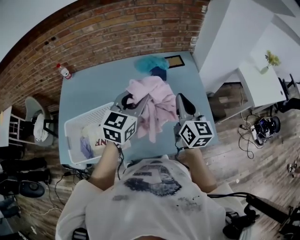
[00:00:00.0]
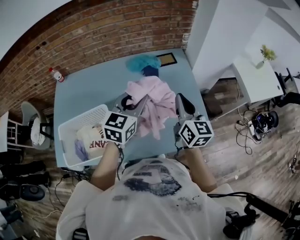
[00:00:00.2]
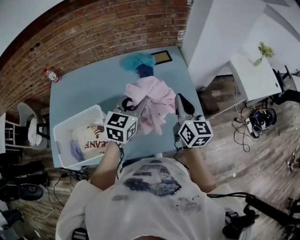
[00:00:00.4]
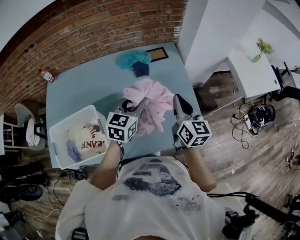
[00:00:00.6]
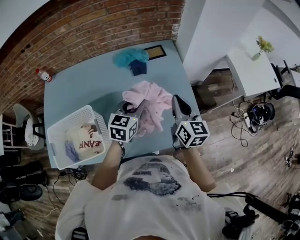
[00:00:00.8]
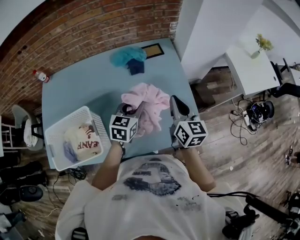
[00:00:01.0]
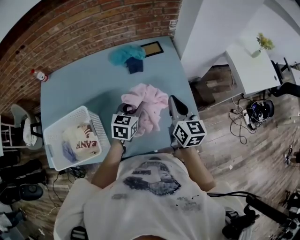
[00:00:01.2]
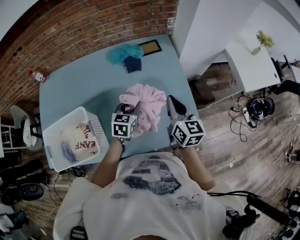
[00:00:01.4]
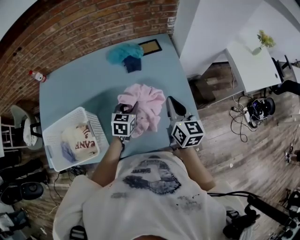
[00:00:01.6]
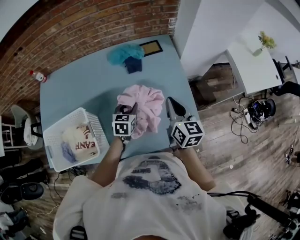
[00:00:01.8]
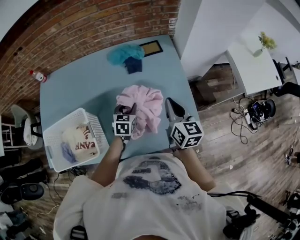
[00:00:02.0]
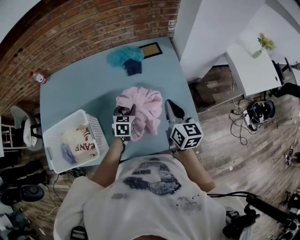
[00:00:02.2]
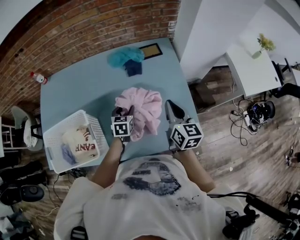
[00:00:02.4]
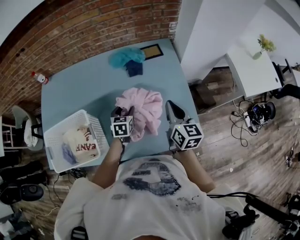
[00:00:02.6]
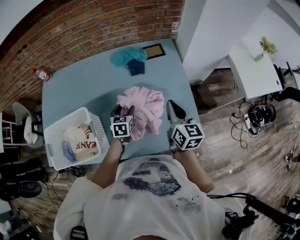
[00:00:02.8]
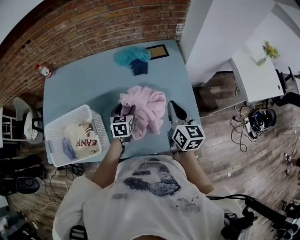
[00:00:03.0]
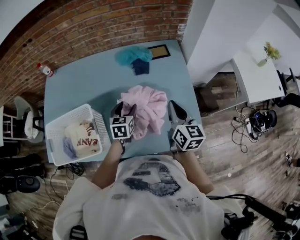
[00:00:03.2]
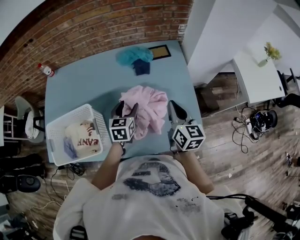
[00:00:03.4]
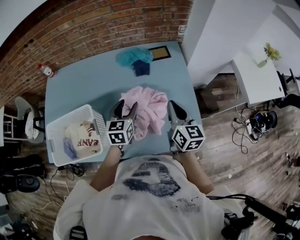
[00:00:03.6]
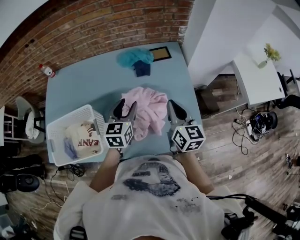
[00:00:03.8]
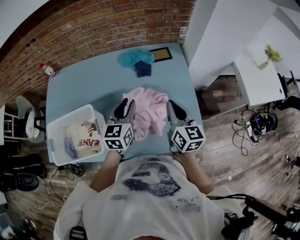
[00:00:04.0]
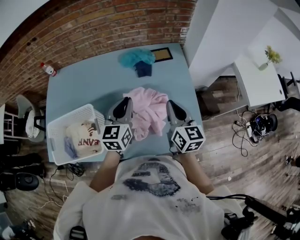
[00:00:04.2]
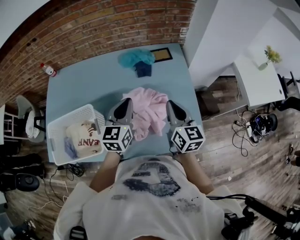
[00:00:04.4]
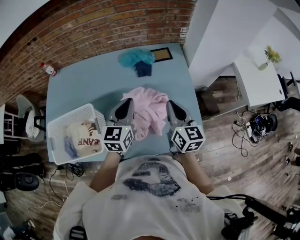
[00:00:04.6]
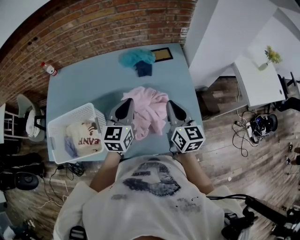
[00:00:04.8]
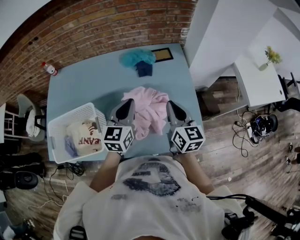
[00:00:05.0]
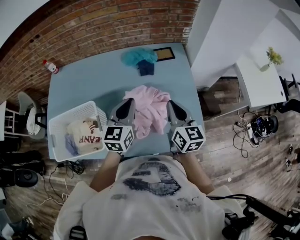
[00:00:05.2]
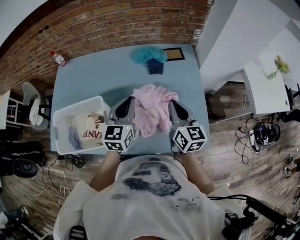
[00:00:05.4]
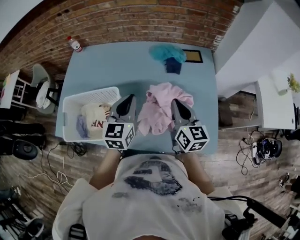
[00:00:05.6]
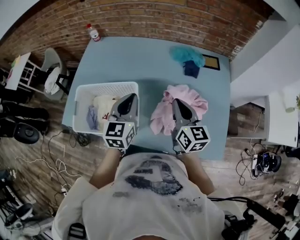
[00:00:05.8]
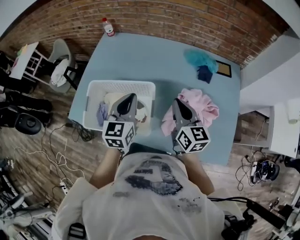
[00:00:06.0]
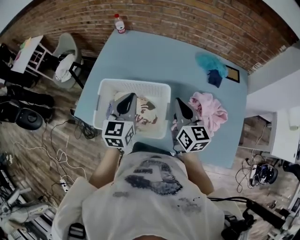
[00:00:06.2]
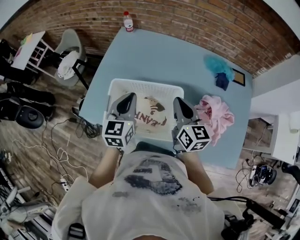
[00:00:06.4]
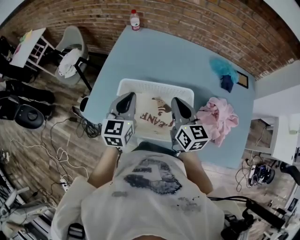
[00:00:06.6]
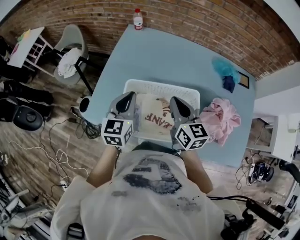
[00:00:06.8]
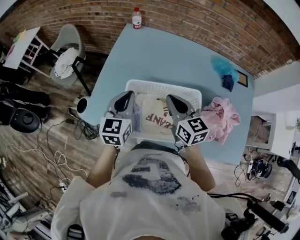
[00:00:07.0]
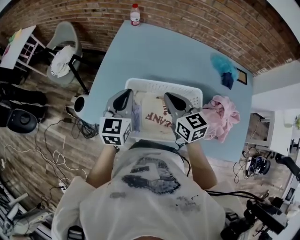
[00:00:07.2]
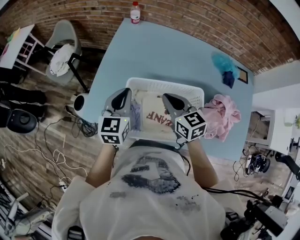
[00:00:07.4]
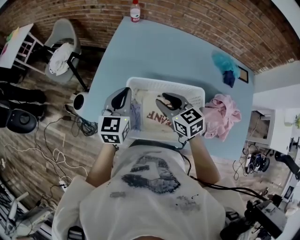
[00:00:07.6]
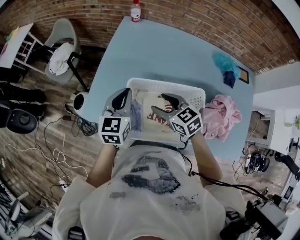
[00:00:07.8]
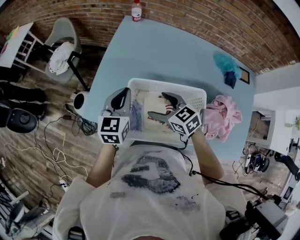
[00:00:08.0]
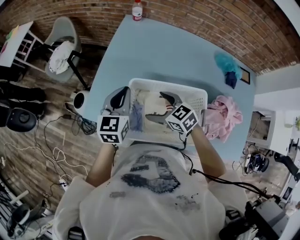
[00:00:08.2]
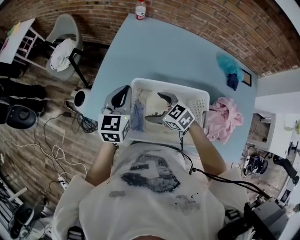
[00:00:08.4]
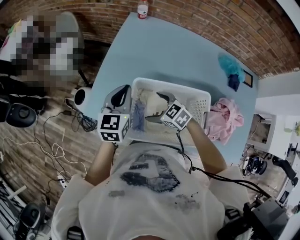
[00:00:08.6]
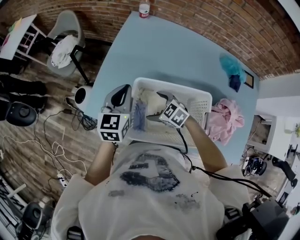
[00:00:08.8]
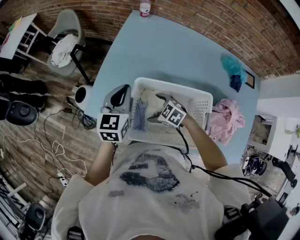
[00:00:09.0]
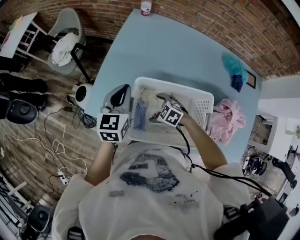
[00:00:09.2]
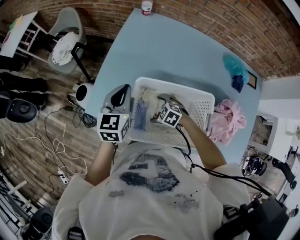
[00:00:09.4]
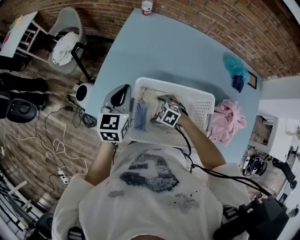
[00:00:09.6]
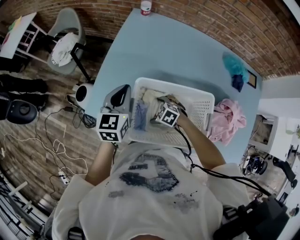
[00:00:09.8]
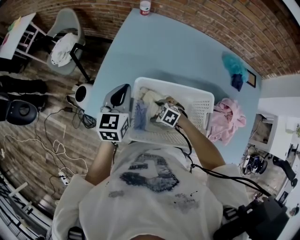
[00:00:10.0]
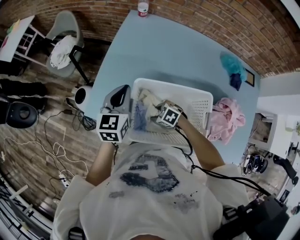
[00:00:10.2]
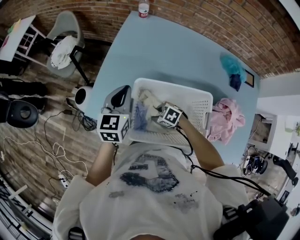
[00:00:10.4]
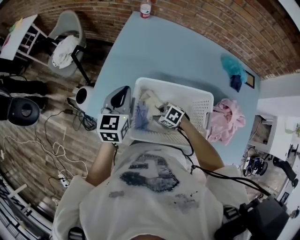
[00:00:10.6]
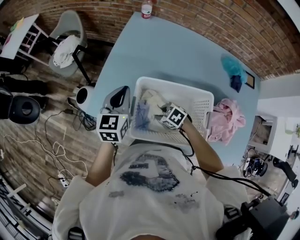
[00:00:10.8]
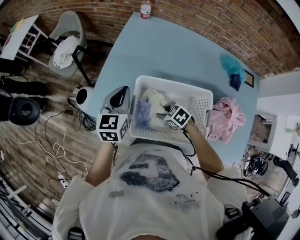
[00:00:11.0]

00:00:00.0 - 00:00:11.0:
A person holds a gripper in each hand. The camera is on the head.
00:00:00.0 - 00:00:01.6: The left gripper moves downward, approximately 25 cm, and swivels about 30 degrees, while the right gripper travels to the right and downward by about 15 cm.
00:00:01.6 - 00:00:03.2: The left gripper goes some 5 cm to the left.
00:00:03.2 - 00:00:04.8: The left gripper shifts approximately 15 cm upward, changes its angle by roughly 20 degrees, and closes up.
00:00:04.8 - 00:00:06.2: Both grippers travel together to the left, about 35 cm. The left gripper changes its angle by roughly 20 degrees. Meanwhile the right gripper changes its angle by roughly 20 degrees.
00:00:06.2 - 00:00:07.8: The right gripper goes roughly 25 cm to the left and downward, changes its angle by roughly 40 degrees, and opens up; the left gripper heads to the left and forward, covering some 20 cm.
00:00:07.8 - 00:00:09.4: The right gripper travels downward by some 20 cm, turns by about 40 degrees, and opens its fingers.
00:00:09.4 - 00:00:11.0: The right gripper closes.

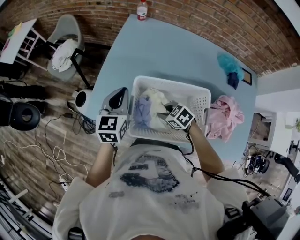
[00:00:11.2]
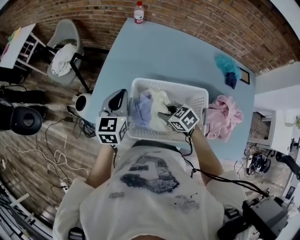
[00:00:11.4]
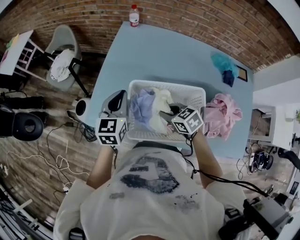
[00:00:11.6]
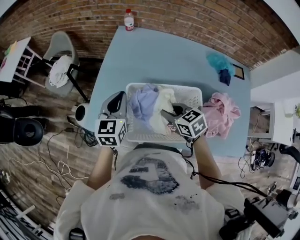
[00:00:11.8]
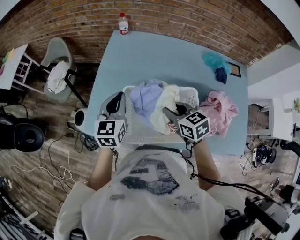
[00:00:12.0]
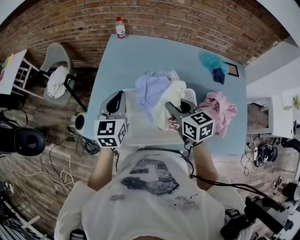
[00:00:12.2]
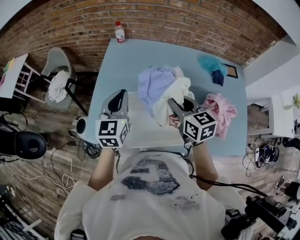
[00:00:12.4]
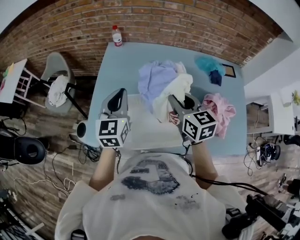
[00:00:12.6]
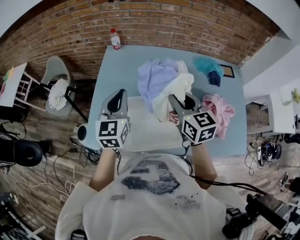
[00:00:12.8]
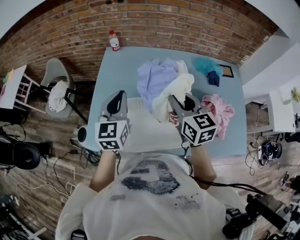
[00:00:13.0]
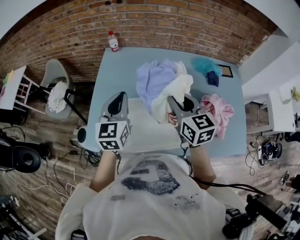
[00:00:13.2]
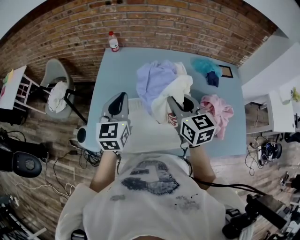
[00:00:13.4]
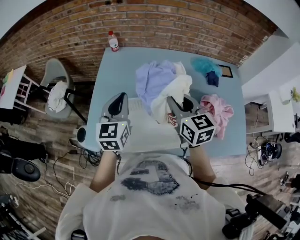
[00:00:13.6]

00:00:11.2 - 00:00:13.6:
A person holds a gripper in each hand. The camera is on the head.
00:00:11.2 - 00:00:12.4: The left gripper travels upward by some 10 cm. Meanwhile the right gripper travels upward by about 25 cm, and tilts its fingers some 30 degrees upward.
00:00:12.4 - 00:00:13.6: The right gripper changes place by approximately 5 cm.

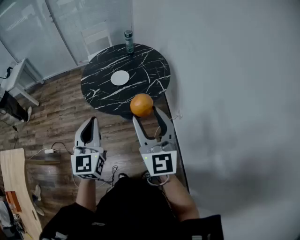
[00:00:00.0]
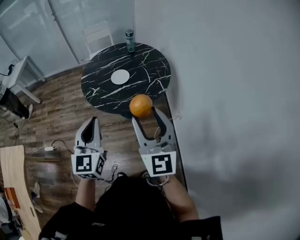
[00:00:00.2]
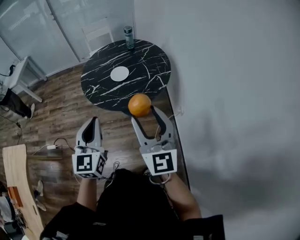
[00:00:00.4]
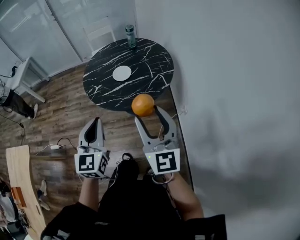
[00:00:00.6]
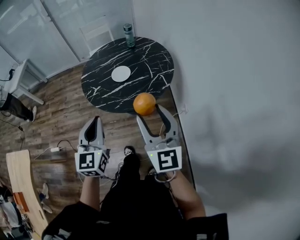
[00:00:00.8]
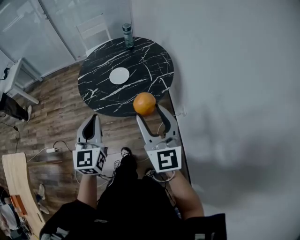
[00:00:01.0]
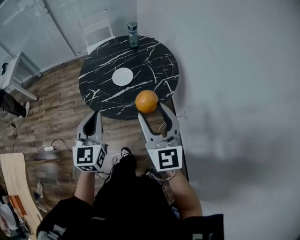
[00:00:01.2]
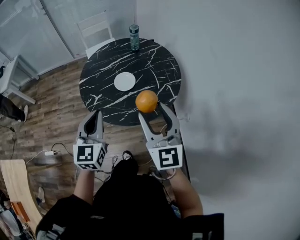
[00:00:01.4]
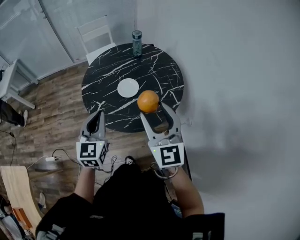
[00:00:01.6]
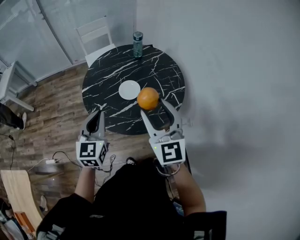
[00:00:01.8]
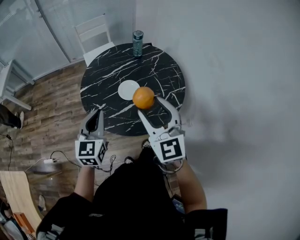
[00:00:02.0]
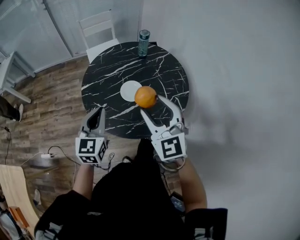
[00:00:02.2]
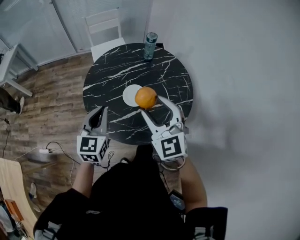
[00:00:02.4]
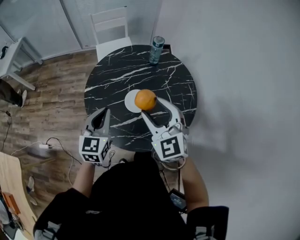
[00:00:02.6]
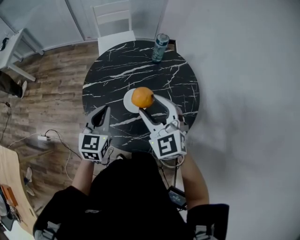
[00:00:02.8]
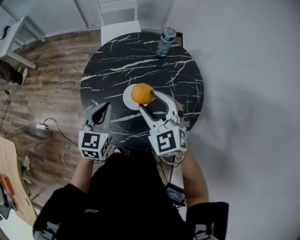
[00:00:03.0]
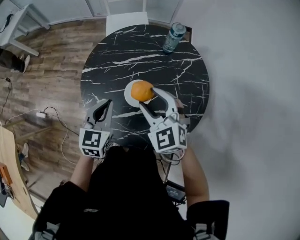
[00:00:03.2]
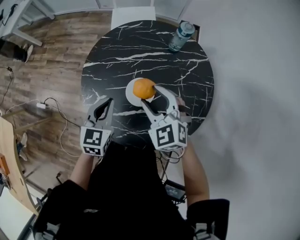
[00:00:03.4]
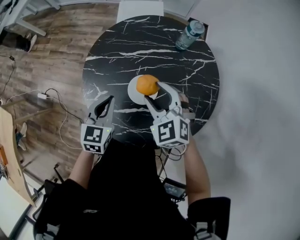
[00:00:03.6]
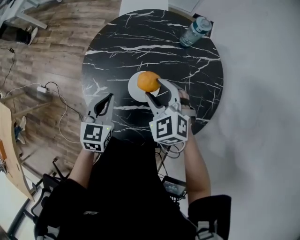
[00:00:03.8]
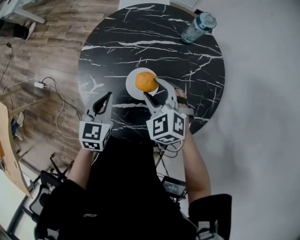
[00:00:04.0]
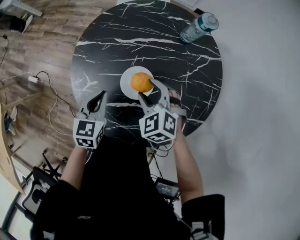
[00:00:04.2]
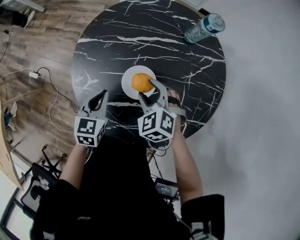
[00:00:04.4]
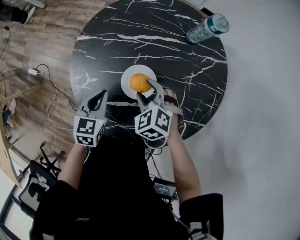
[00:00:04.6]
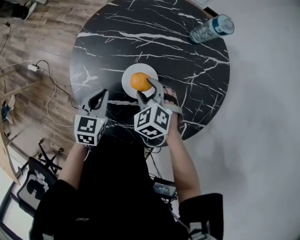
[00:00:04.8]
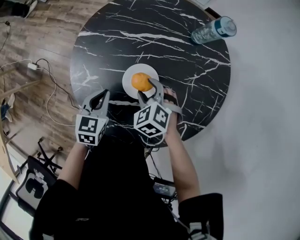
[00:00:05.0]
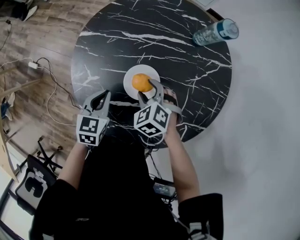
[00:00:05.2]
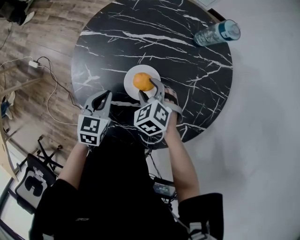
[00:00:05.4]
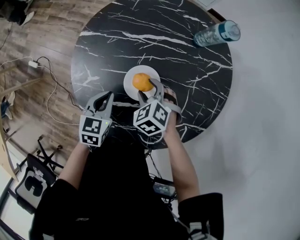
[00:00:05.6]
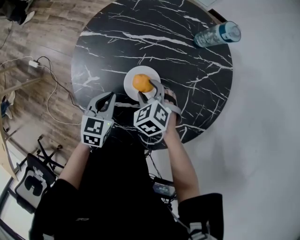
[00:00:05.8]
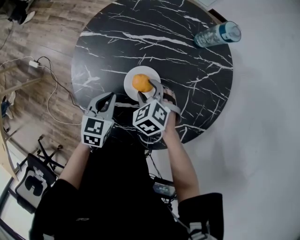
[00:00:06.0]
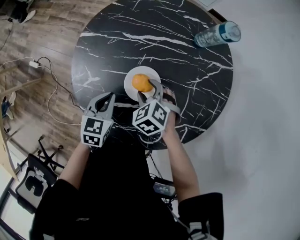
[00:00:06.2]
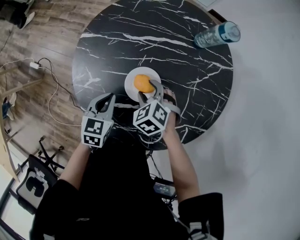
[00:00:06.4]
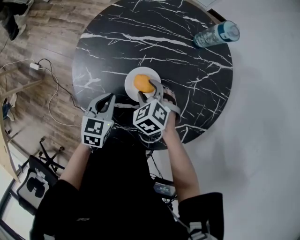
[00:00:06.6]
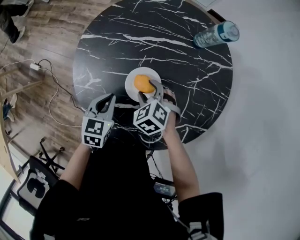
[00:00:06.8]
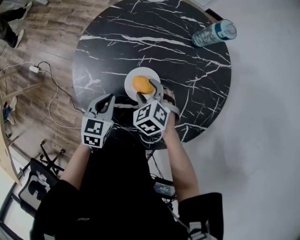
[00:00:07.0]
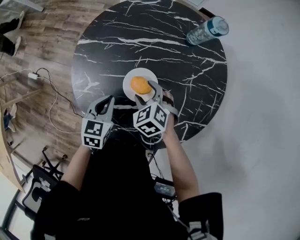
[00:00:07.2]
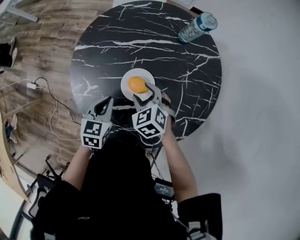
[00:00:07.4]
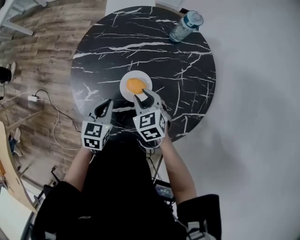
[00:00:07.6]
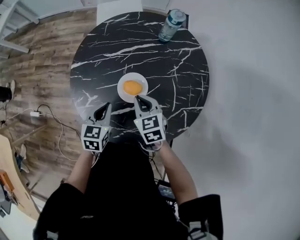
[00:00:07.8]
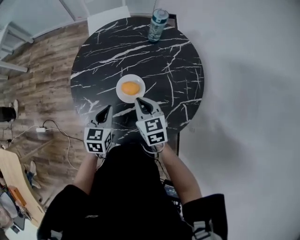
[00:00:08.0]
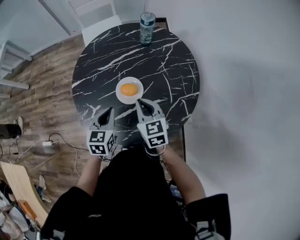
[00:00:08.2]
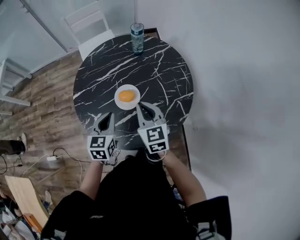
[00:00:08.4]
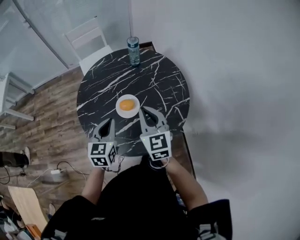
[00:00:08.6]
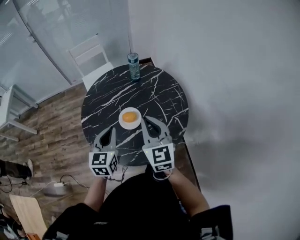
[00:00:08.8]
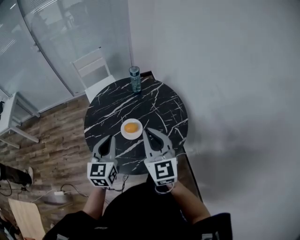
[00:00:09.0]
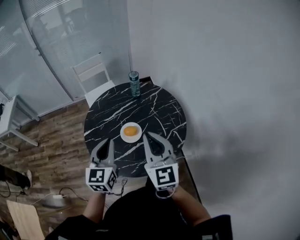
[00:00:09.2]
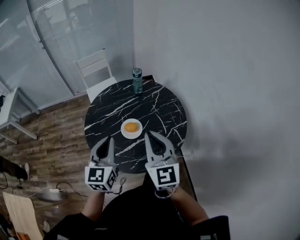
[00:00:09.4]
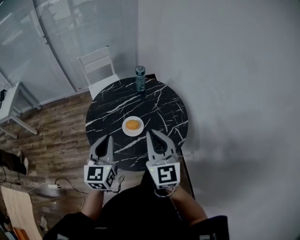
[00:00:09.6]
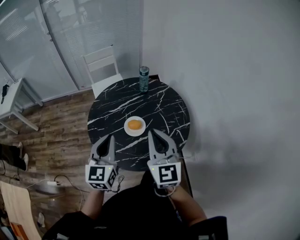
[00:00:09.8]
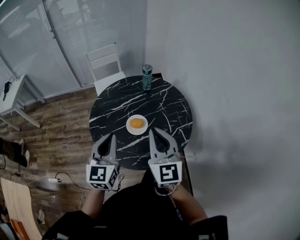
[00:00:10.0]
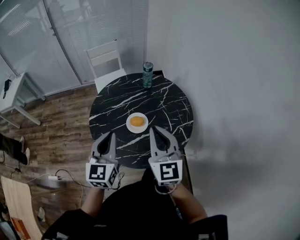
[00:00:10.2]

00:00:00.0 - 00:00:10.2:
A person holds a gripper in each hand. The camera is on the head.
00:00:00.0 - 00:00:01.4: Both grippers move forward, approximately 20 cm.
00:00:01.4 - 00:00:03.0: The right gripper shifts some 30 cm forward, and changes its angle by roughly 40 degrees. The left gripper goes approximately 25 cm forward and downward.
00:00:03.0 - 00:00:04.4: The two grippers go roughly 20 cm downward. The left gripper changes its angle by about 20 degrees, while the right gripper changes its angle by approximately 30 degrees.
00:00:04.4 - 00:00:05.8: The right gripper goes some 5 cm downward.
00:00:05.8 - 00:00:07.2: The grippers stay close to where they were, moving slightly.
00:00:07.2 - 00:00:08.8: The two grippers go approximately 25 cm upward. The right gripper tilts its fingers roughly 50 degrees upward, and closes up. Meanwhile the left gripper swivels roughly 30 degrees.
00:00:08.8 - 00:00:10.2: The two grippers go some 10 cm upward and backward.
